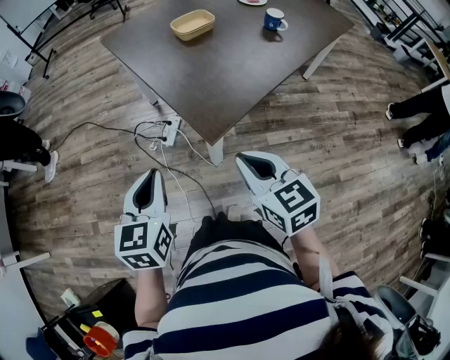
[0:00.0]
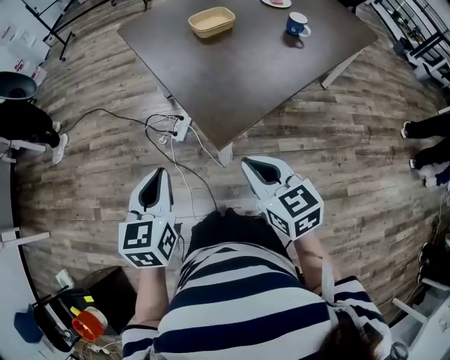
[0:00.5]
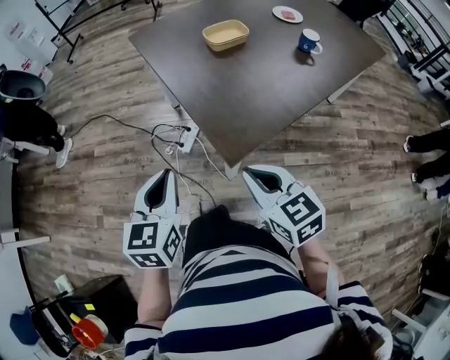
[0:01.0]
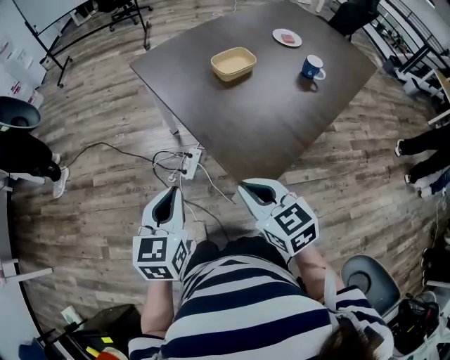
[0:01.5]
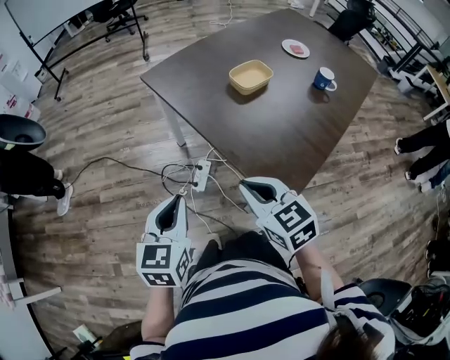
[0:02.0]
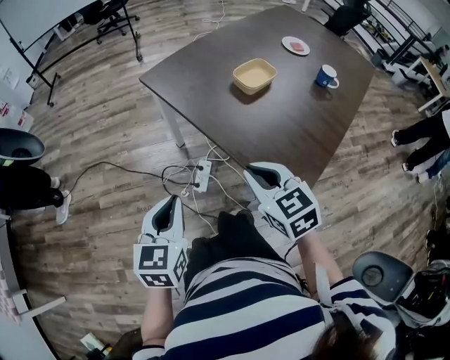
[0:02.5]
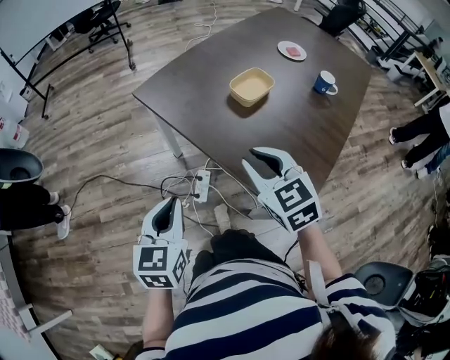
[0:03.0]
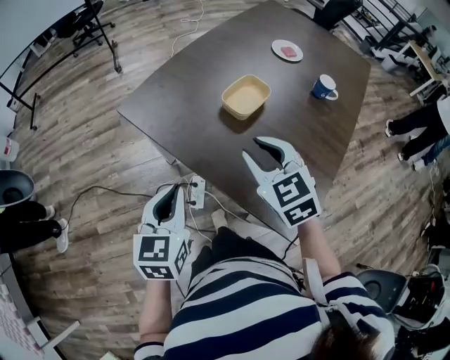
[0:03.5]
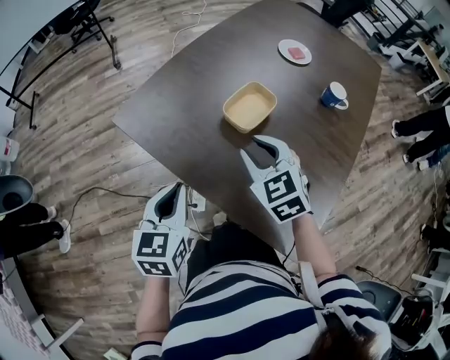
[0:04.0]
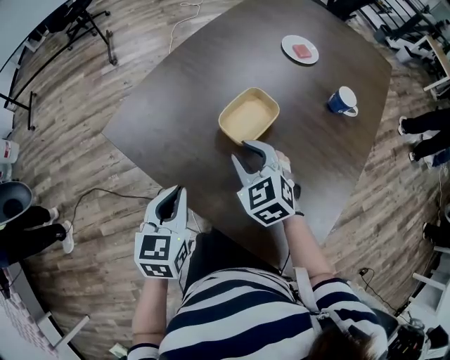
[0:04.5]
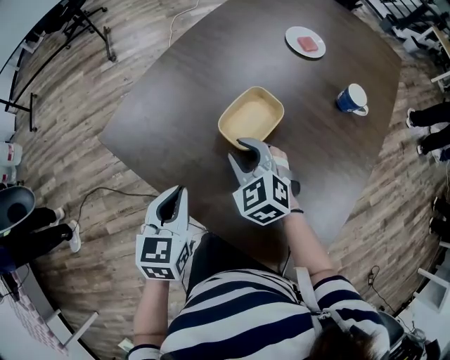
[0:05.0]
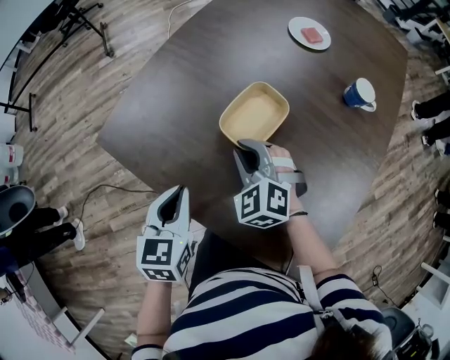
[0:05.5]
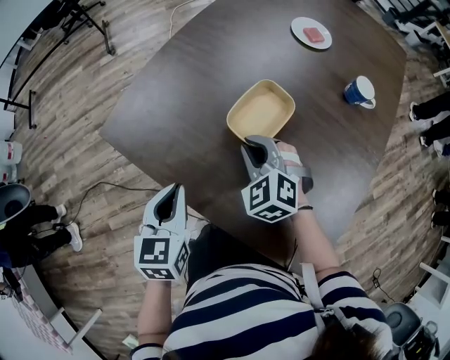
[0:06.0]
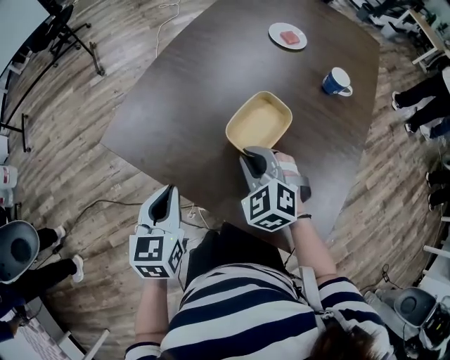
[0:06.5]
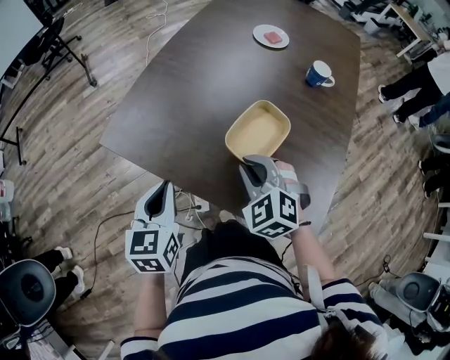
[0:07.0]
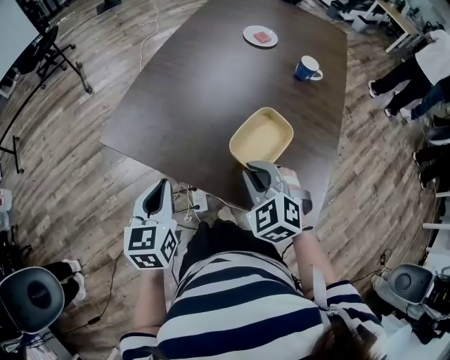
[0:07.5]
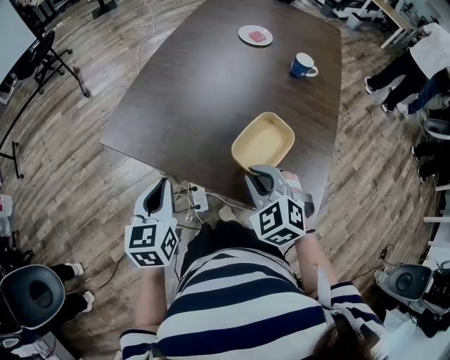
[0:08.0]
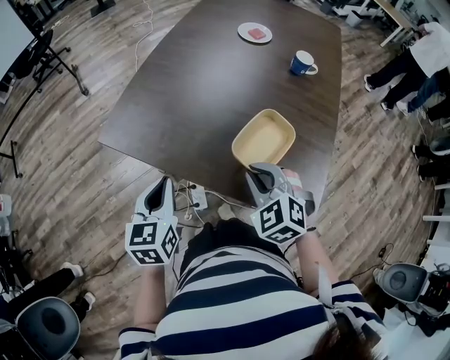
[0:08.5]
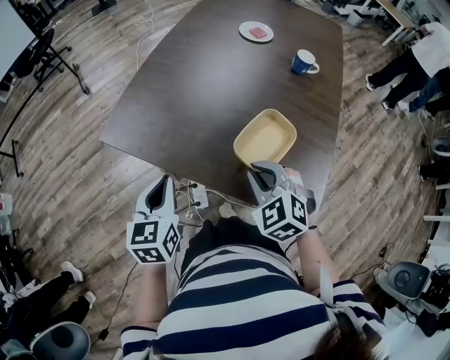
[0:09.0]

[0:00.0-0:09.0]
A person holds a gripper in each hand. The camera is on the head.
0.0 to 2.0 s: Both grippers move forward and to the left, some 30 cm.
2.0 to 4.5 s: The grippers both shift forward by approximately 40 cm. The right gripper swivels approximately 20 degrees, and opens its fingers.
4.5 to 7.0 s: The right gripper travels backward by roughly 10 cm; the left gripper is displaced to the left by approximately 5 cm.
7.0 to 9.0 s: The right gripper heads backward, covering about 10 cm.

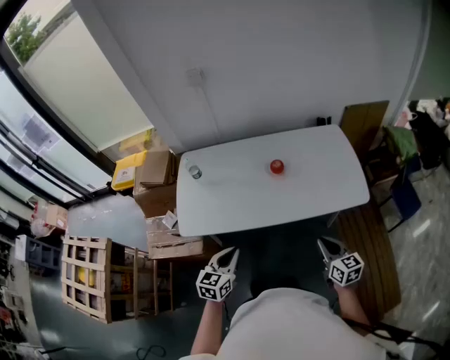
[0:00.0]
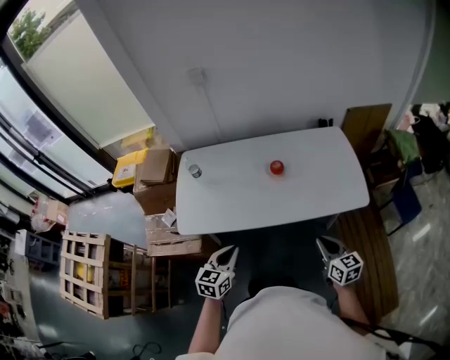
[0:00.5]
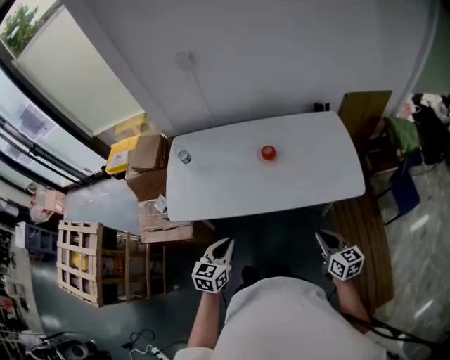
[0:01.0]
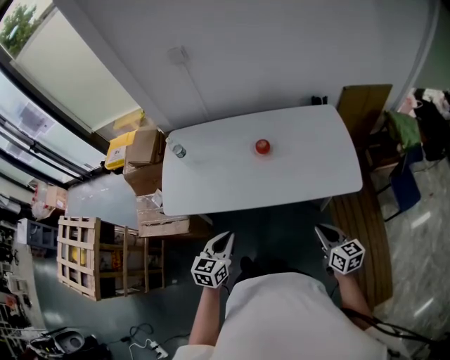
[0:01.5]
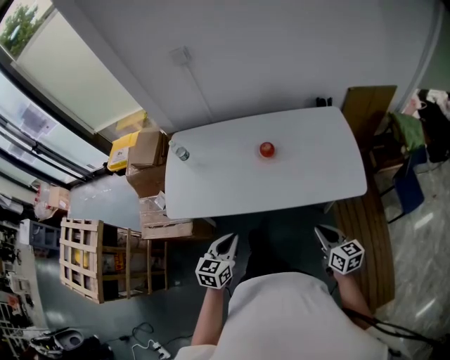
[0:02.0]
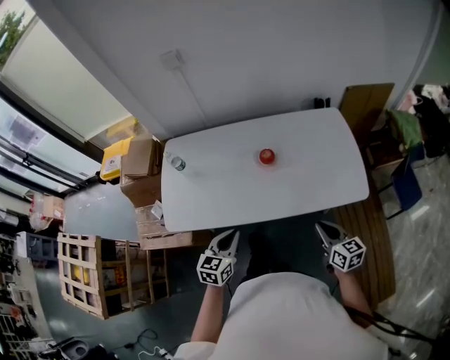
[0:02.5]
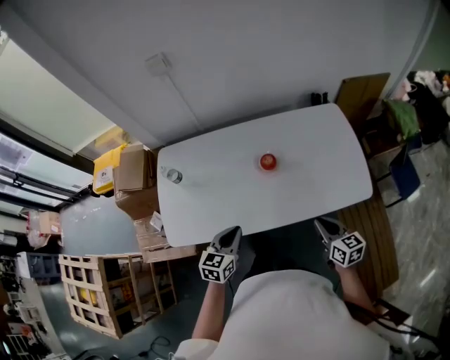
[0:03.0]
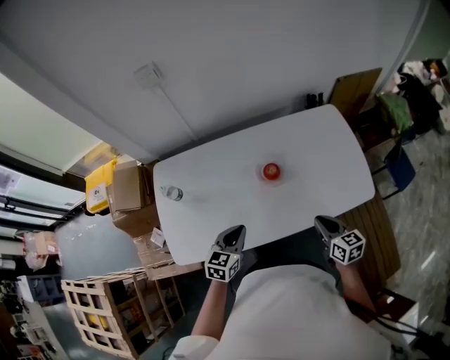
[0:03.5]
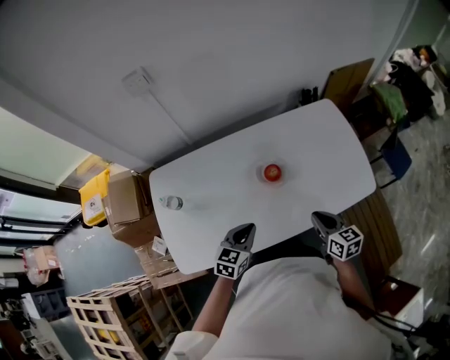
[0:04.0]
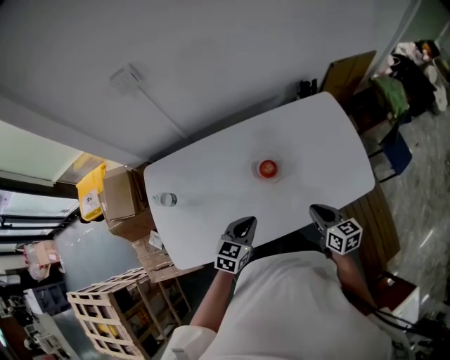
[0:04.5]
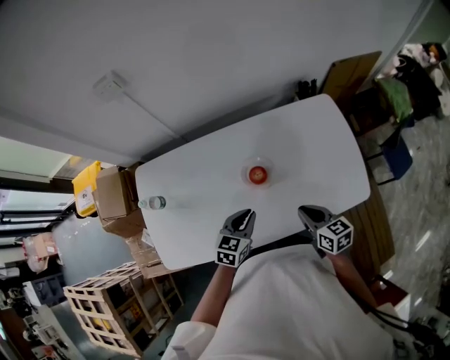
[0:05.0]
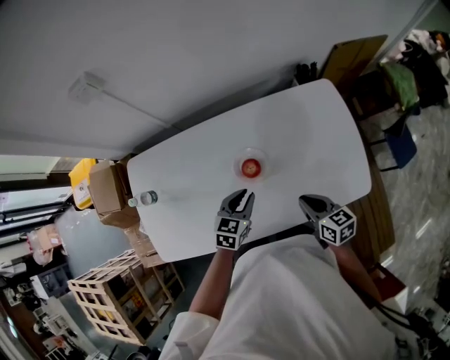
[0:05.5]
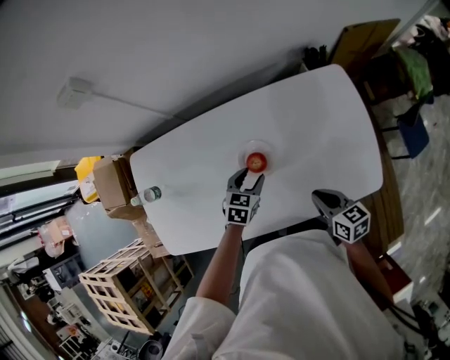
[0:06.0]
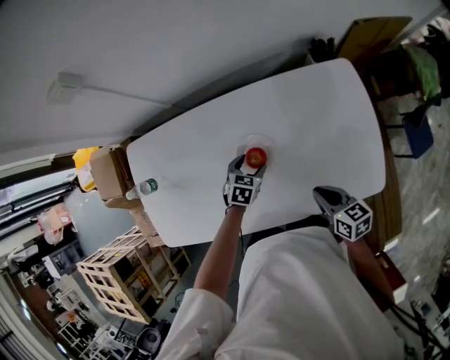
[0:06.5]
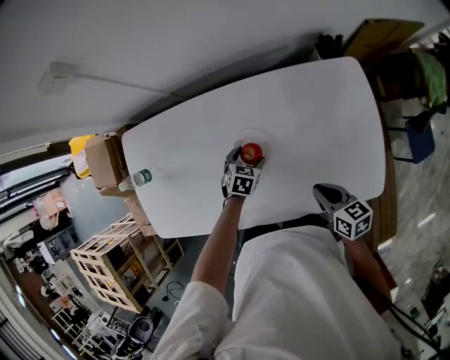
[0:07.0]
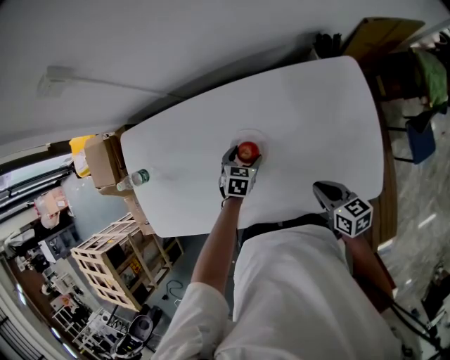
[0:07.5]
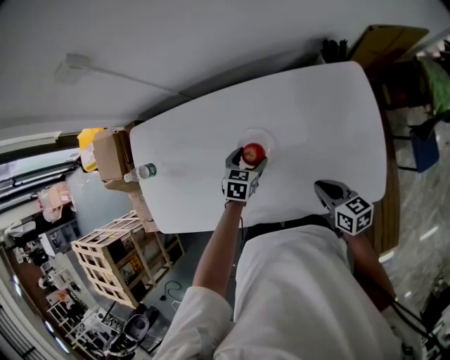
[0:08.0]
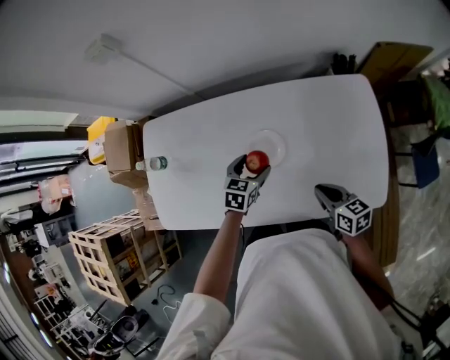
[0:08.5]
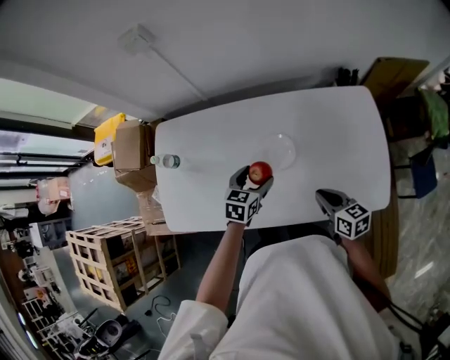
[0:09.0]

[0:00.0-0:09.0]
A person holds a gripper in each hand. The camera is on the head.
0.0 to 2.0 s: The grippers both shift to the right by some 5 cm.
2.0 to 4.5 s: The left gripper is displaced forward by approximately 25 cm, and swivels some 30 degrees, while the right gripper is displaced forward and to the left by roughly 25 cm.
4.5 to 7.0 s: The left gripper moves downward, forward and to the right, about 30 cm, turns by approximately 30 degrees, and opens, while the right gripper heads to the right, forward and downward, covering about 15 cm, and turns by some 20 degrees.
7.0 to 9.0 s: The right gripper goes some 5 cm to the left; the left gripper shifts approximately 15 cm upward, and swivels roughly 20 degrees.

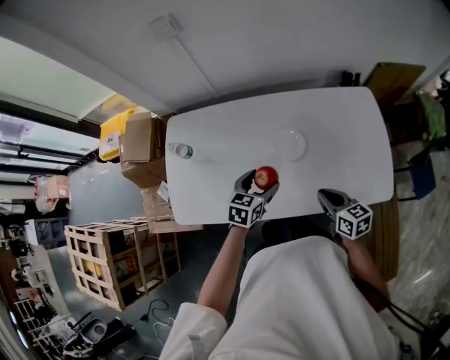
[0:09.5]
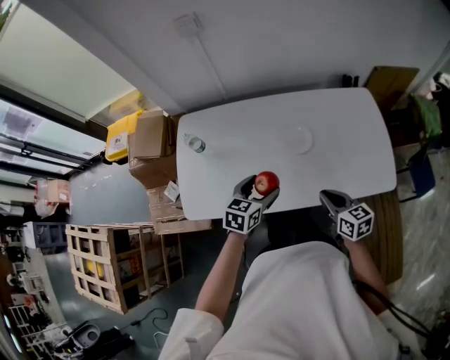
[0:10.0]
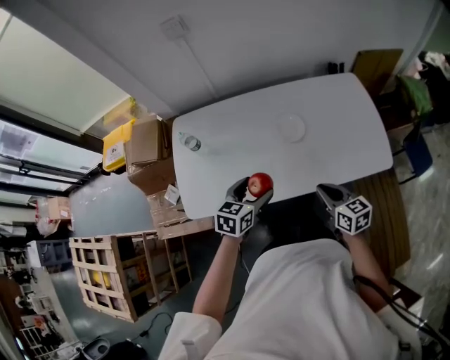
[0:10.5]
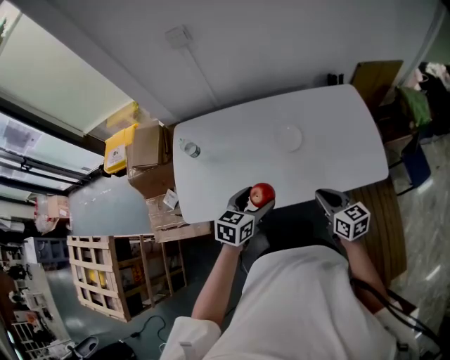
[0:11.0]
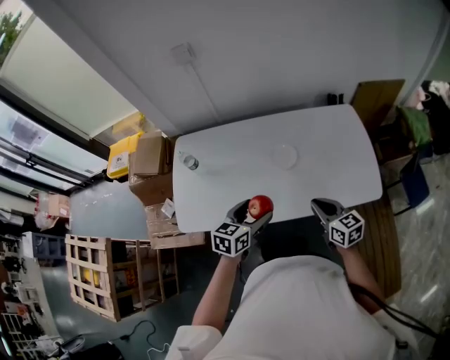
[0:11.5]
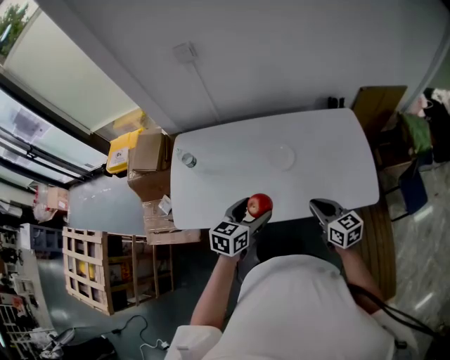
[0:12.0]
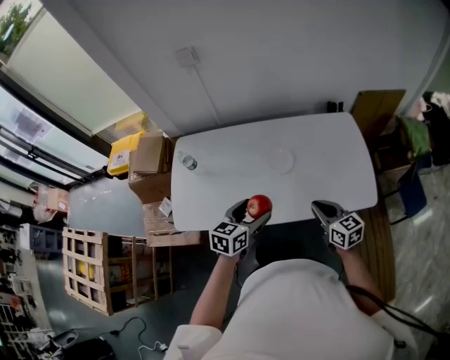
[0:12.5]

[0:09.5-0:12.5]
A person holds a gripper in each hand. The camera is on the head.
9.5 to 11.0 s: The right gripper heads backward, covering some 10 cm. The left gripper moves backward and upward, approximately 15 cm.
11.0 to 12.5 s: The left gripper moves some 5 cm; the right gripper shifts approximately 5 cm to the right.

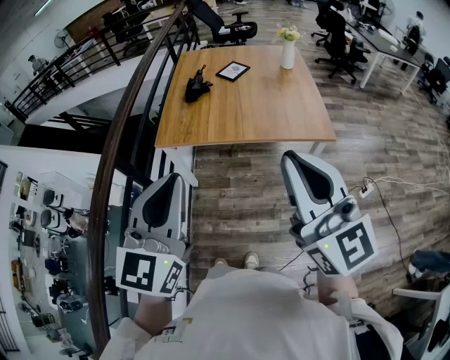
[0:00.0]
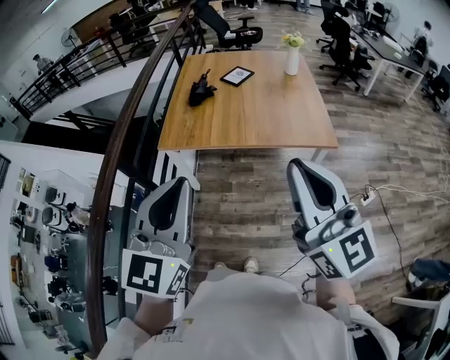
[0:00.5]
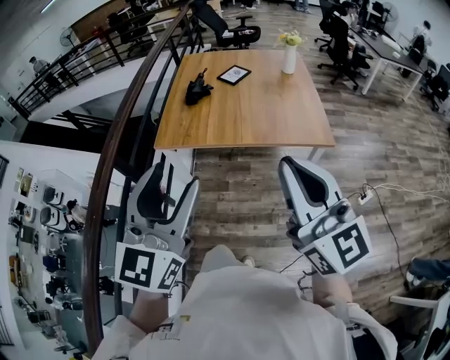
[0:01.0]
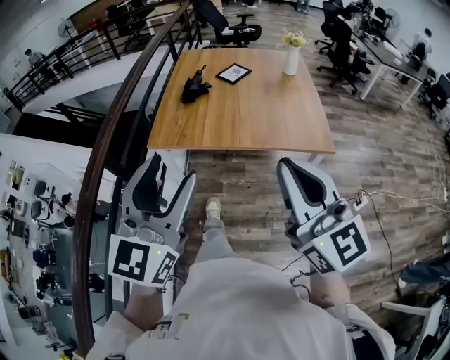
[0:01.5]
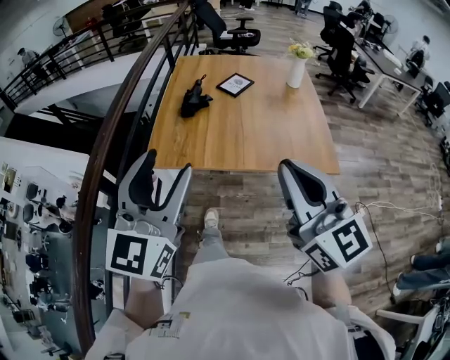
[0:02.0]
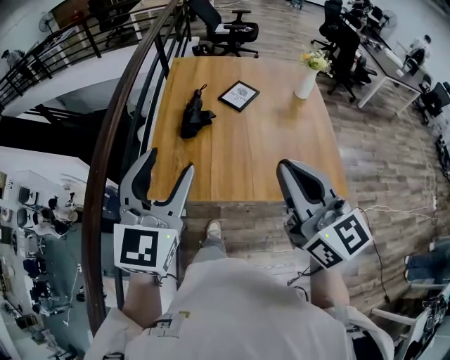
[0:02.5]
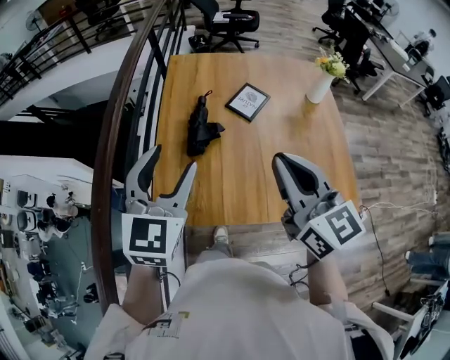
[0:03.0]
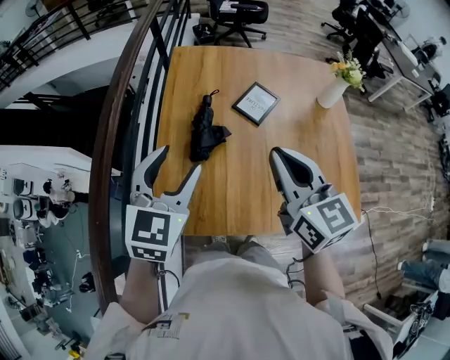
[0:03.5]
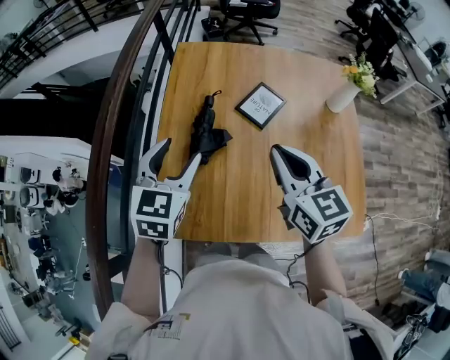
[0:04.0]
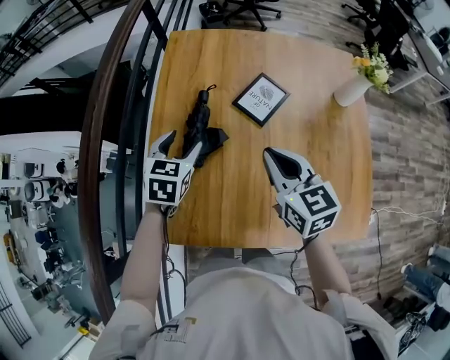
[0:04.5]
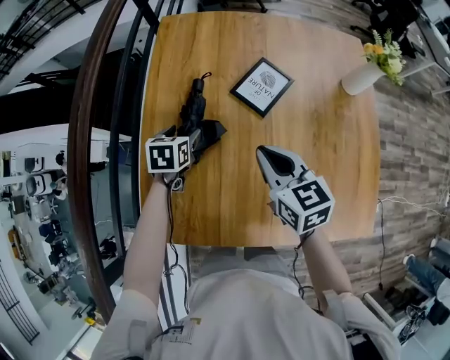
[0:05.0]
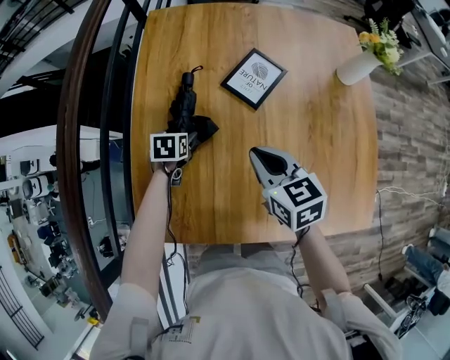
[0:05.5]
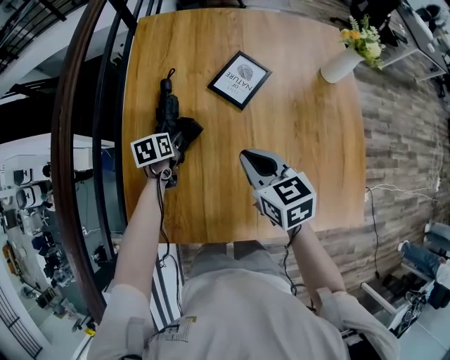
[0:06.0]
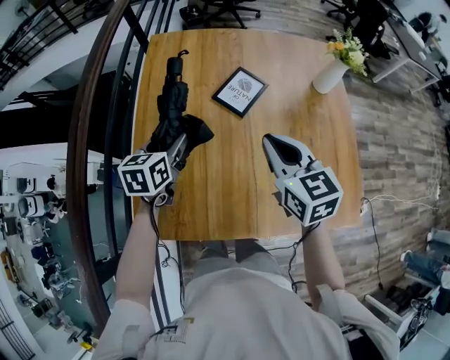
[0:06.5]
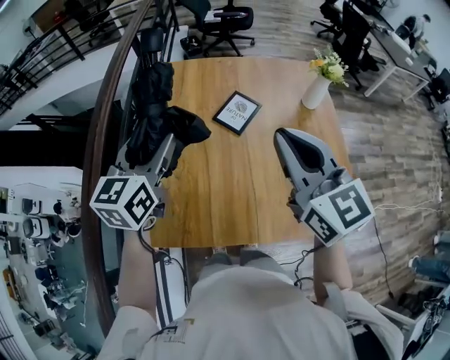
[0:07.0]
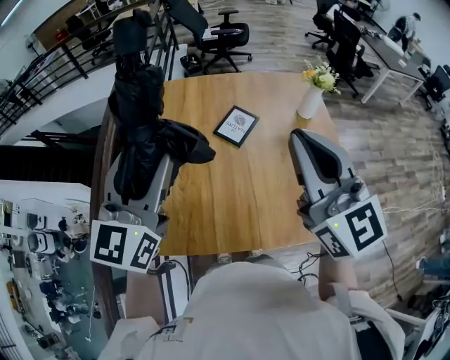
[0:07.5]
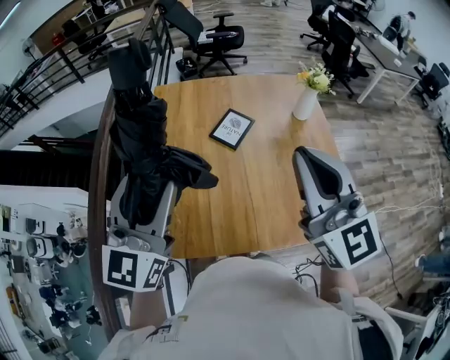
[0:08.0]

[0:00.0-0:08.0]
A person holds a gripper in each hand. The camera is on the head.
0.0 to 2.0 s: Both grippers move forward, about 20 cm. The left gripper opens up.
2.0 to 4.0 s: The pair of grippers is taken forward, roughly 50 cm. The right gripper changes its angle by roughly 30 degrees. Meanwhile the left gripper points its fingers approximately 30 degrees further downward.
4.0 to 6.0 s: The left gripper shifts some 35 cm downward, and turns by some 50 degrees; the right gripper shifts approximately 20 cm downward, and swivels approximately 20 degrees.
6.0 to 8.0 s: The left gripper is displaced upward and backward by some 60 cm, and tips its fingers upward by about 60 degrees, while the right gripper shifts approximately 35 cm upward, and angles its fingers upward, by some 40 degrees.
